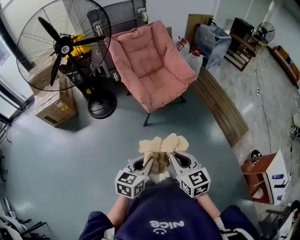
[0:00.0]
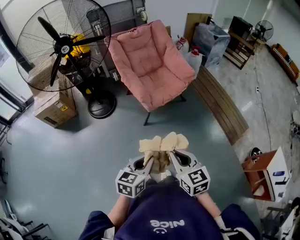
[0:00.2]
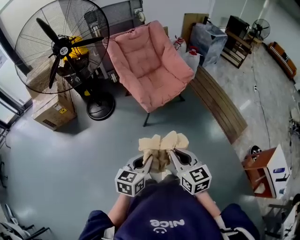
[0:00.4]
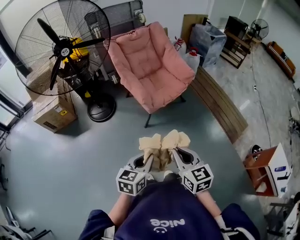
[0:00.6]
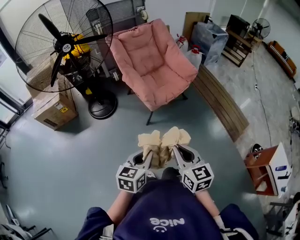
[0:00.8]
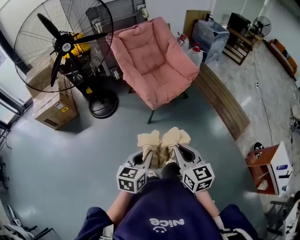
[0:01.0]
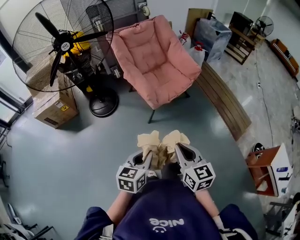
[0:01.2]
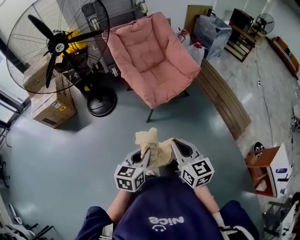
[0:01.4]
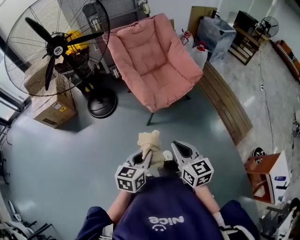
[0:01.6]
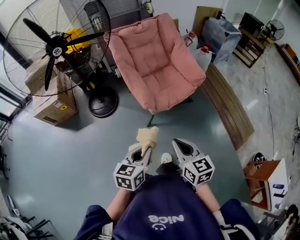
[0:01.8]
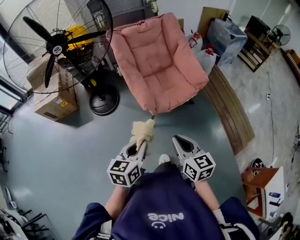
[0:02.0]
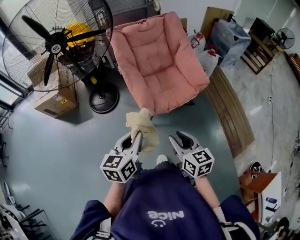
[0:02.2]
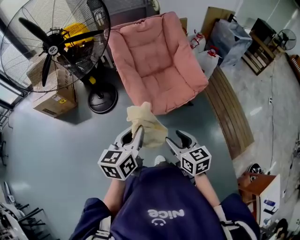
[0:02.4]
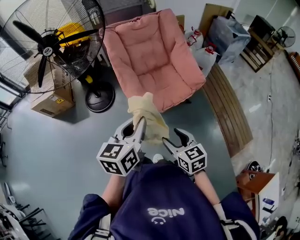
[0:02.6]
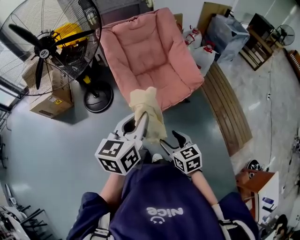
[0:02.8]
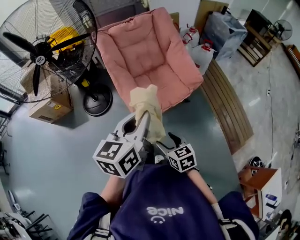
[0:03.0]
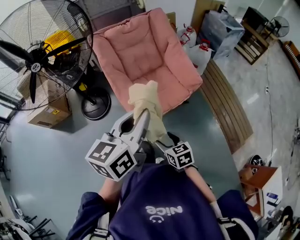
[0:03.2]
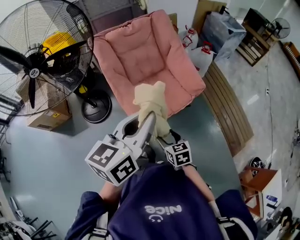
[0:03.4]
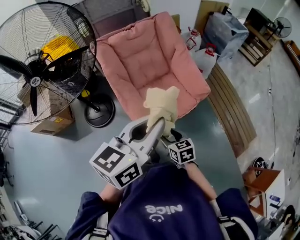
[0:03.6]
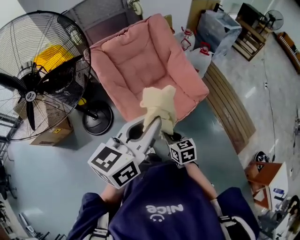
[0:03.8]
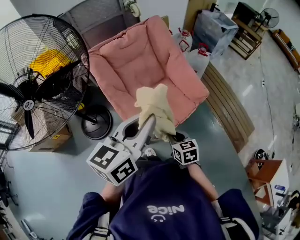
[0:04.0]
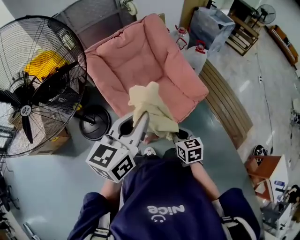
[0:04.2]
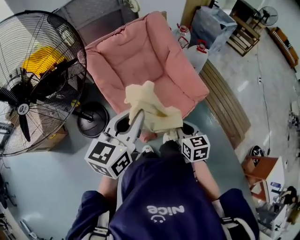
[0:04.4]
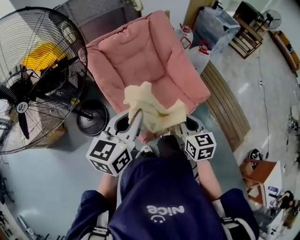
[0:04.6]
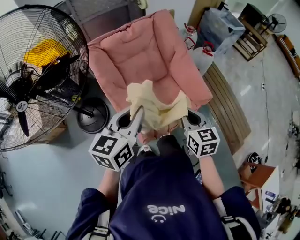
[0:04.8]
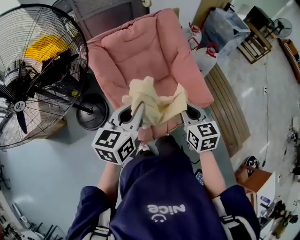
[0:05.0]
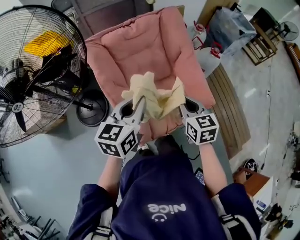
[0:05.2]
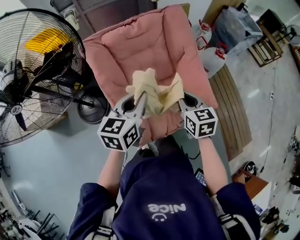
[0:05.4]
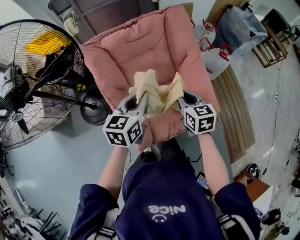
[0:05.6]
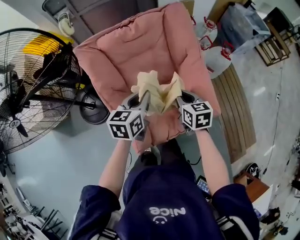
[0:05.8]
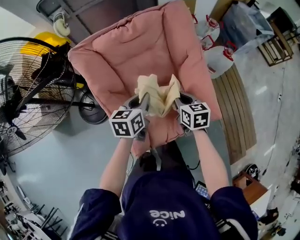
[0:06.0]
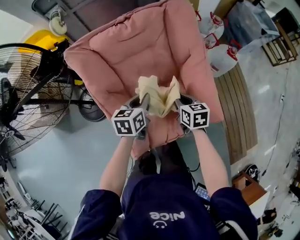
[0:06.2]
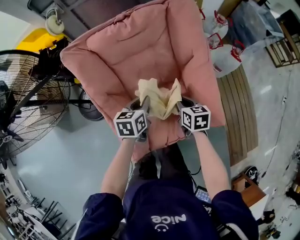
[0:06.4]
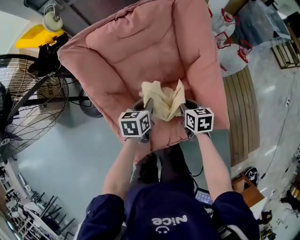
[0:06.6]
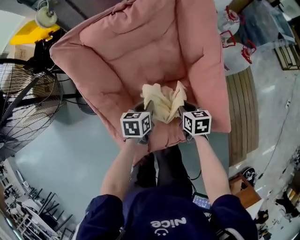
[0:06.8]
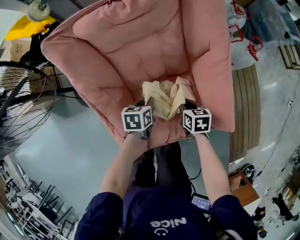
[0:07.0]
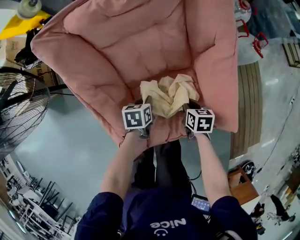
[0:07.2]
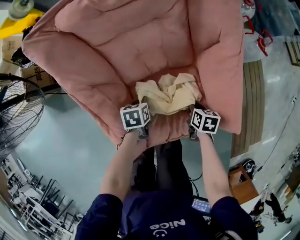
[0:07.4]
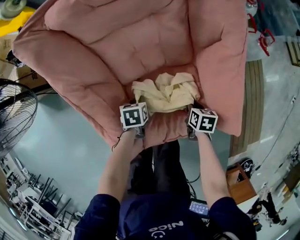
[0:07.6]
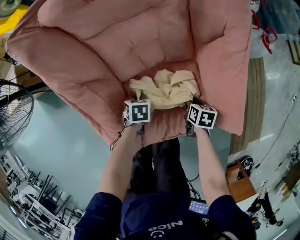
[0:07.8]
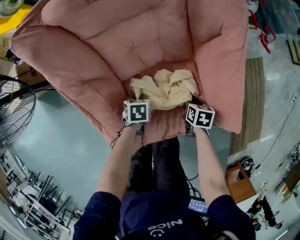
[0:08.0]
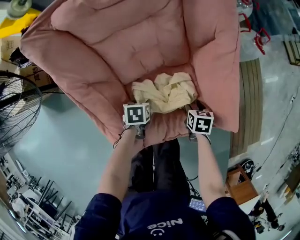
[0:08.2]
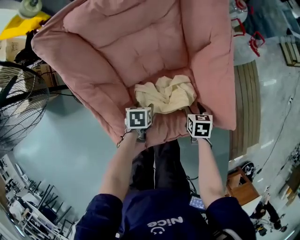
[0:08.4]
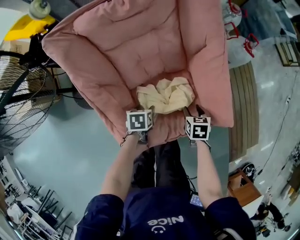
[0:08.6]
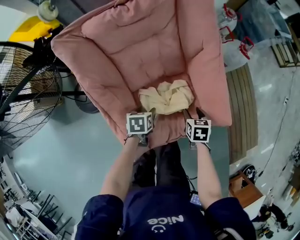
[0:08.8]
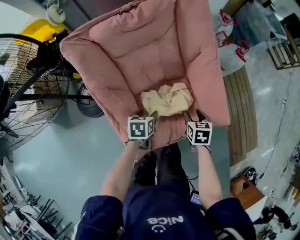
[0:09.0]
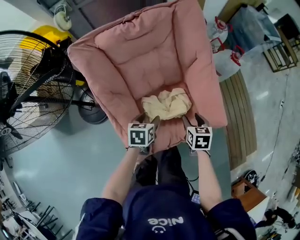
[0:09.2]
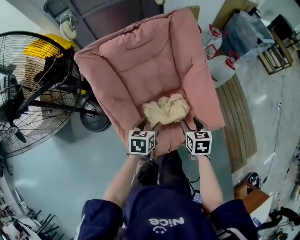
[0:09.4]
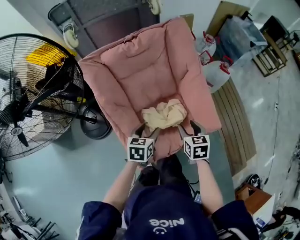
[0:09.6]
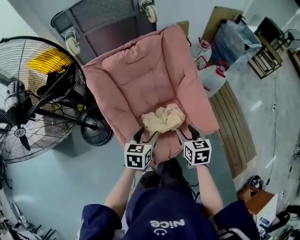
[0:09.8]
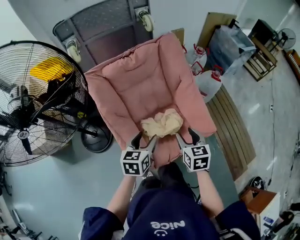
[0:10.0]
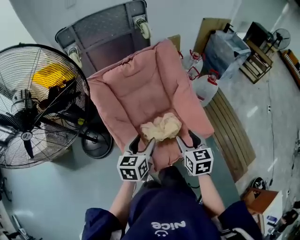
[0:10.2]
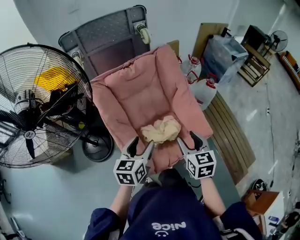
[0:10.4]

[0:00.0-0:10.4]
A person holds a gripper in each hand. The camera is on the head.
0:00.0 to 0:01.4: The right gripper moves forward and to the left, approximately 10 cm; the left gripper shifts about 10 cm to the left and forward.
0:01.4 to 0:03.0: The left gripper travels forward, to the right and upward by roughly 35 cm; the right gripper travels forward, downward and to the right by some 30 cm, changes its angle by some 20 degrees, and opens up.
0:03.0 to 0:04.4: The left gripper heads forward and to the left, covering roughly 25 cm, while the right gripper travels forward by approximately 25 cm, changes its angle by roughly 20 degrees, and closes.
0:04.4 to 0:06.0: The left gripper shifts some 35 cm forward and downward, and turns by roughly 30 degrees; the right gripper is displaced forward by approximately 35 cm.
0:06.0 to 0:07.4: Both grippers travel together downward, about 35 cm. The right gripper rotates some 30 degrees. The left gripper tilts its fingers some 40 degrees downward.
0:07.4 to 0:09.0: The two grippers go roughly 15 cm upward. The left gripper opens. The right gripper opens its fingers.
0:09.0 to 0:10.4: The right gripper shifts approximately 35 cm upward and backward, and changes its angle by approximately 30 degrees, while the left gripper goes roughly 30 cm upward, and tilts its fingers about 40 degrees upward.

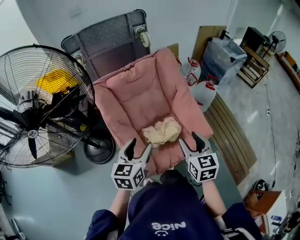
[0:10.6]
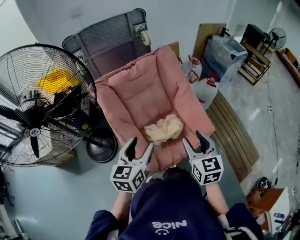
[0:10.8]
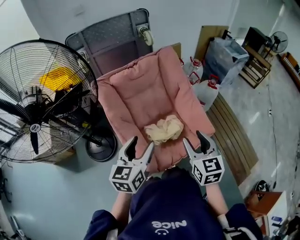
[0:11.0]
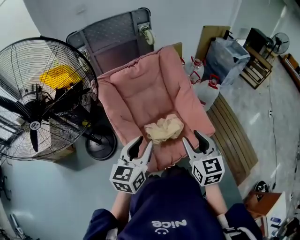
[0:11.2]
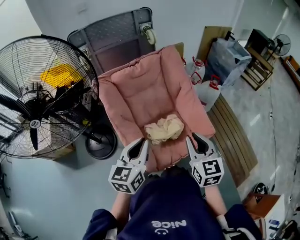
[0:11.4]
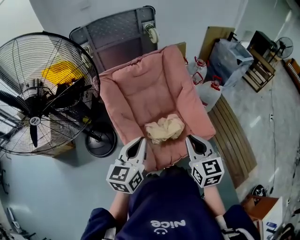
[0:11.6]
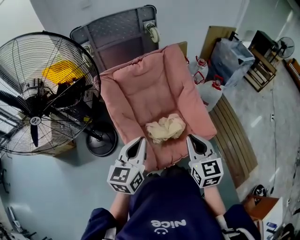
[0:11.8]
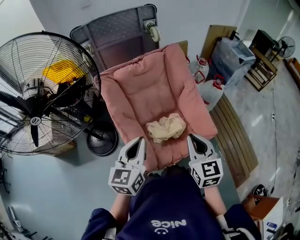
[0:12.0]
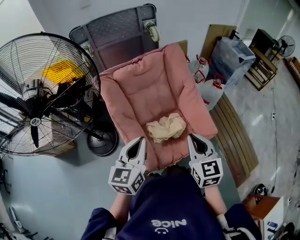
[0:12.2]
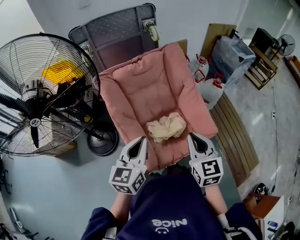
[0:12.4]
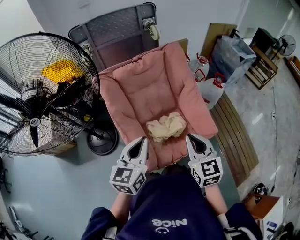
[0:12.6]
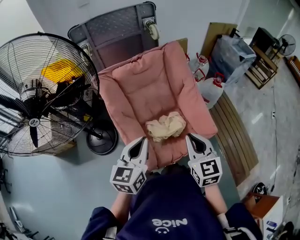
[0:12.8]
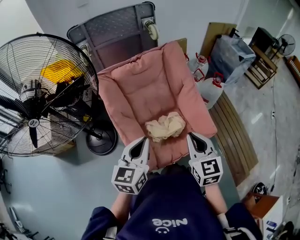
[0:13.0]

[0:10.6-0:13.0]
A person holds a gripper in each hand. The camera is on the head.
0:10.6 to 0:11.8: The right gripper closes its fingers. The left gripper moves some 5 cm, and closes.
0:11.8 to 0:13.0: The grippers move only a little.

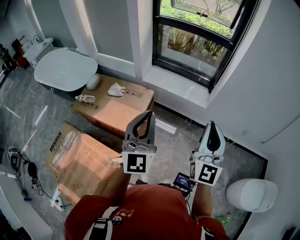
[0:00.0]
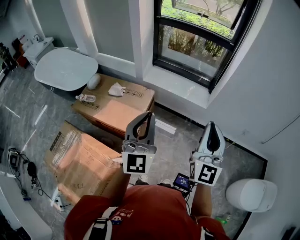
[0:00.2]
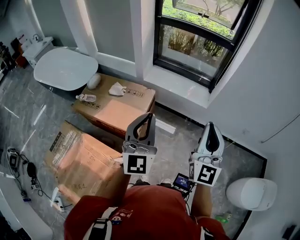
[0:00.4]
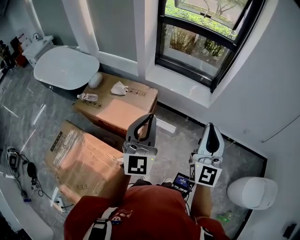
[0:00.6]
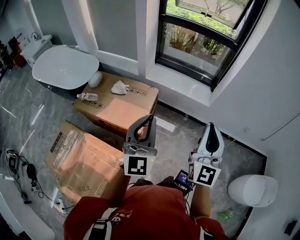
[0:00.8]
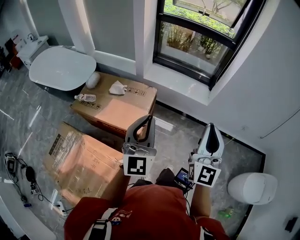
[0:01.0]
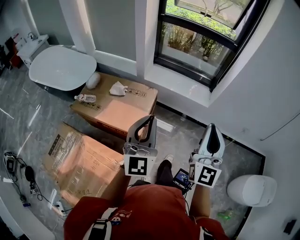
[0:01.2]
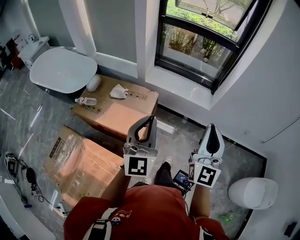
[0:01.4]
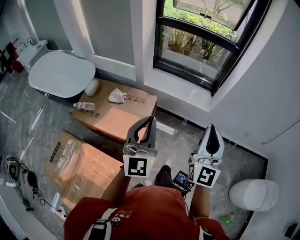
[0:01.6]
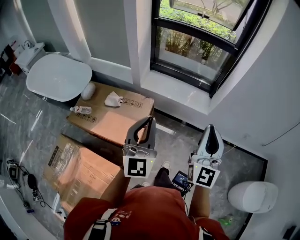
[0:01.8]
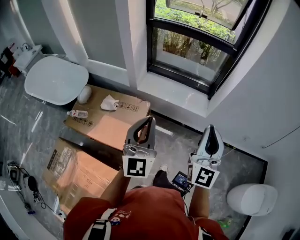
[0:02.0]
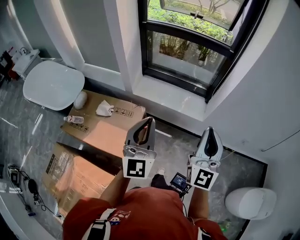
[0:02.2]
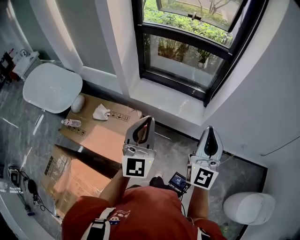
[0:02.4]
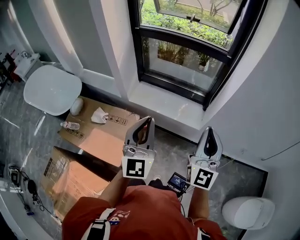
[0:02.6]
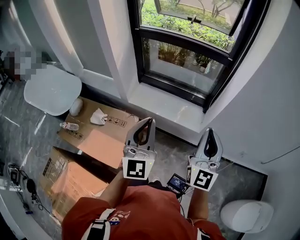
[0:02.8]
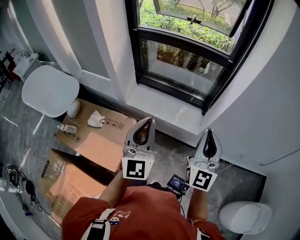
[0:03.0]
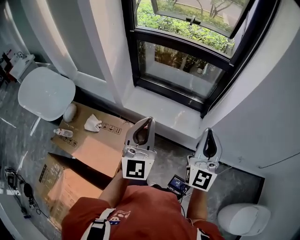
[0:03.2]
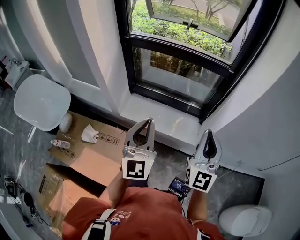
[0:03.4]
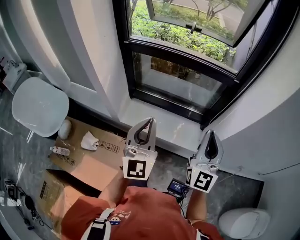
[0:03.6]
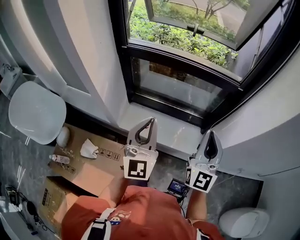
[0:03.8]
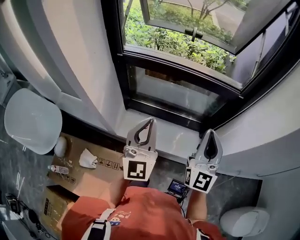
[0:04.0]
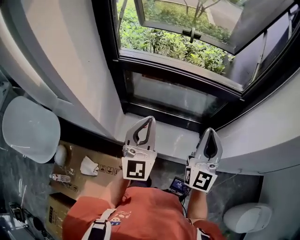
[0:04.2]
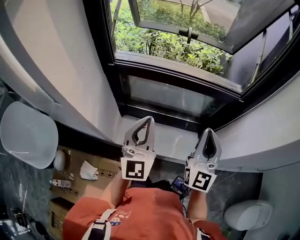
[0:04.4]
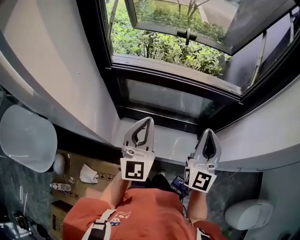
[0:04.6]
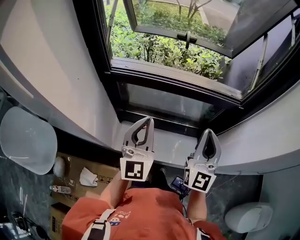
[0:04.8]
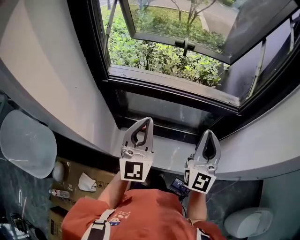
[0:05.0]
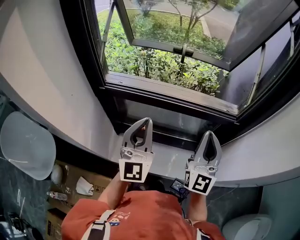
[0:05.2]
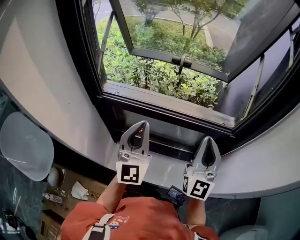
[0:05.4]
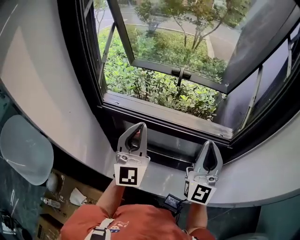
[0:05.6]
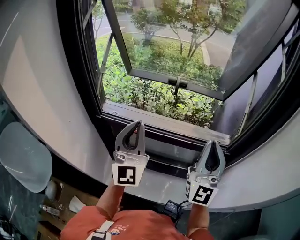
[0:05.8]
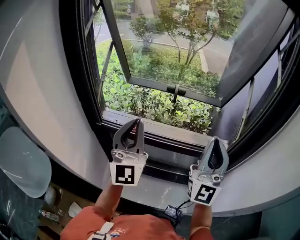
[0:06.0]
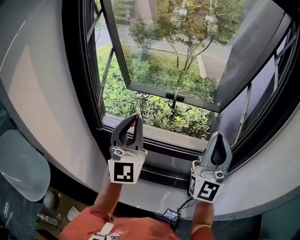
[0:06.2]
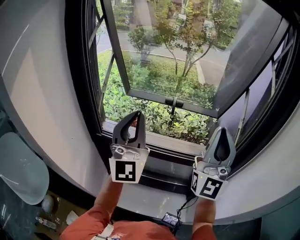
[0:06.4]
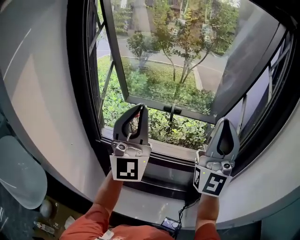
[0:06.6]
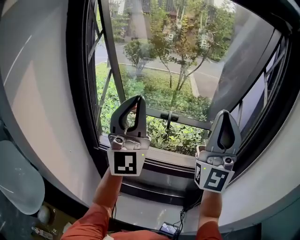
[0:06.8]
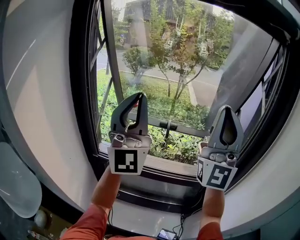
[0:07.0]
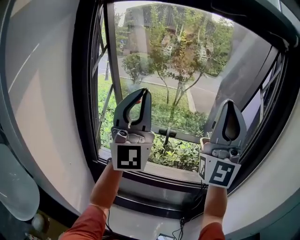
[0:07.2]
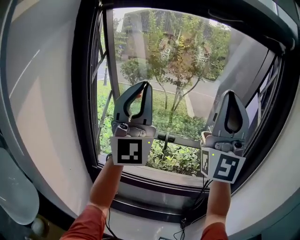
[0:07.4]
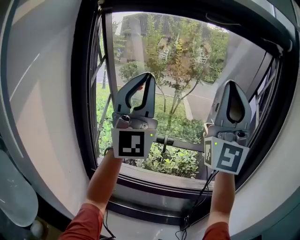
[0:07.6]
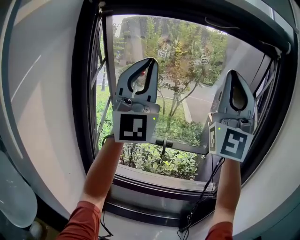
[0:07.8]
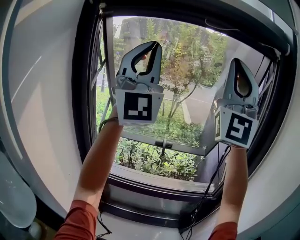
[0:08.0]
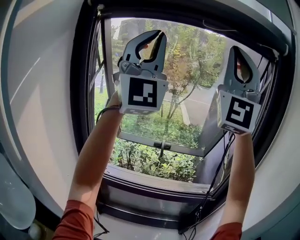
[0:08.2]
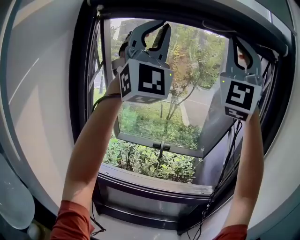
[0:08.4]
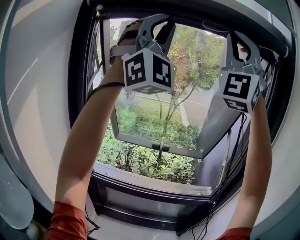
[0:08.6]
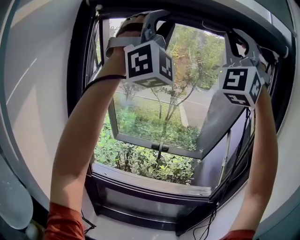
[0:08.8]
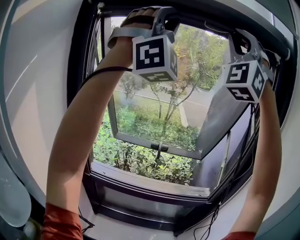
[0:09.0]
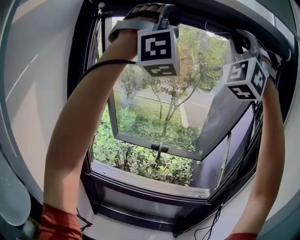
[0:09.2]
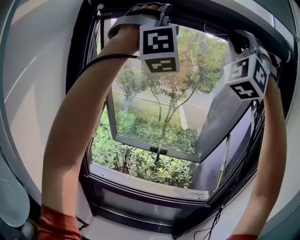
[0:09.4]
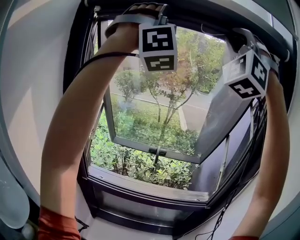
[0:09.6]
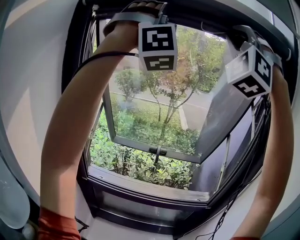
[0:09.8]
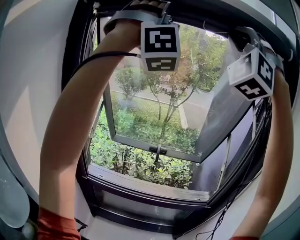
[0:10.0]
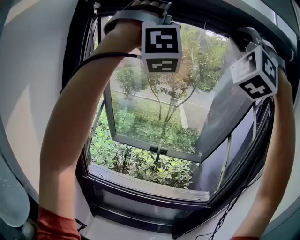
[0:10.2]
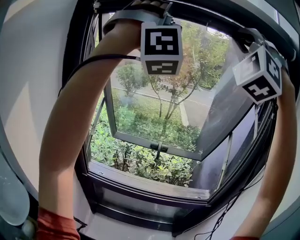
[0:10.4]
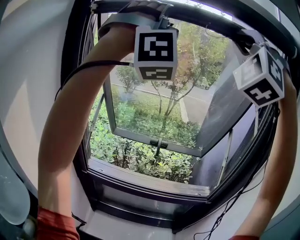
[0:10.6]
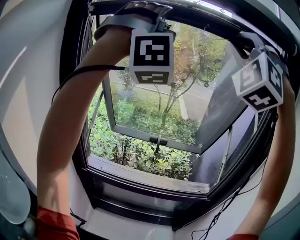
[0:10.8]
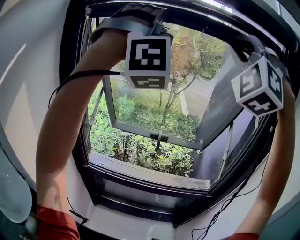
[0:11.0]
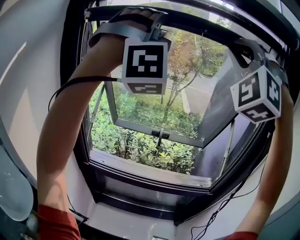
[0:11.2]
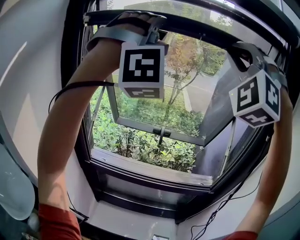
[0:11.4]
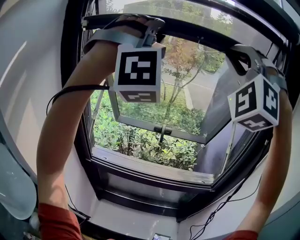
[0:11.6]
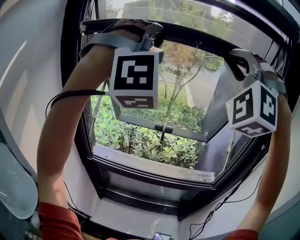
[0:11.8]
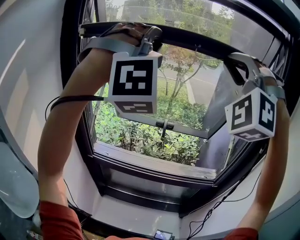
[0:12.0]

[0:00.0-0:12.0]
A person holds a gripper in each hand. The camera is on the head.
0:00.0 to 0:01.6: The left gripper moves to the left and forward, roughly 10 cm. The right gripper goes some 5 cm to the left.
0:01.6 to 0:03.0: The two grippers go roughly 30 cm forward and to the right.
0:03.0 to 0:04.4: The two grippers go about 30 cm forward.
0:04.4 to 0:06.0: The grippers both shift upward and forward by roughly 20 cm. The right gripper changes its angle by roughly 20 degrees; the left gripper rotates about 20 degrees.
0:06.0 to 0:07.6: The grippers both shift upward by some 30 cm. The left gripper swivels about 30 degrees. Meanwhile the right gripper changes its angle by approximately 30 degrees.
0:07.6 to 0:09.0: The left gripper travels upward by approximately 20 cm, and rolls clockwise, seen from behind, by approximately 60 degrees; the right gripper shifts about 20 cm upward and forward, and rolls counterclockwise, seen from behind, by approximately 50 degrees.
0:09.0 to 0:10.4: The right gripper changes its angle by about 20 degrees. The left gripper changes its angle by approximately 20 degrees.
0:10.4 to 0:12.0: Both grippers move downward, some 15 cm.
